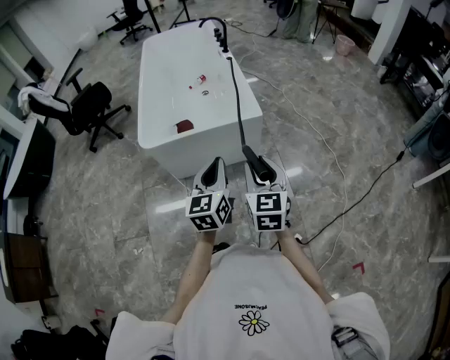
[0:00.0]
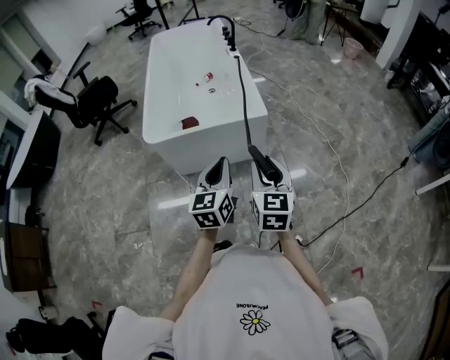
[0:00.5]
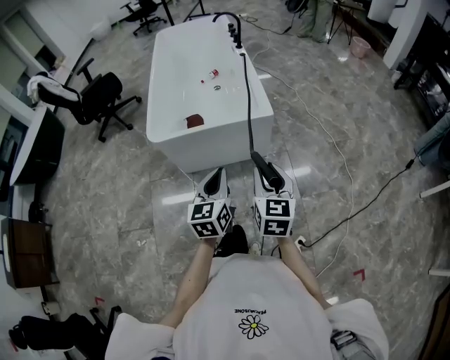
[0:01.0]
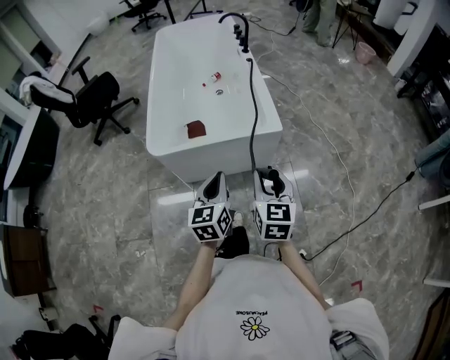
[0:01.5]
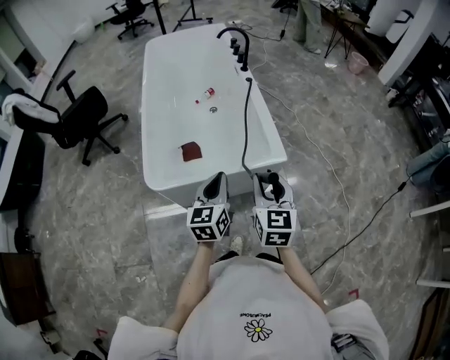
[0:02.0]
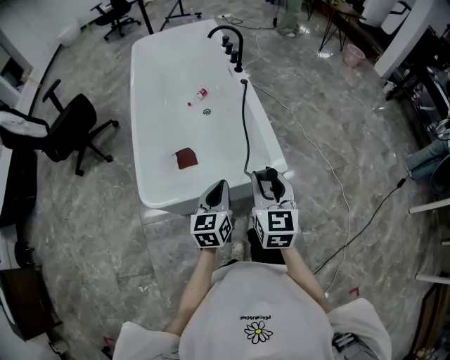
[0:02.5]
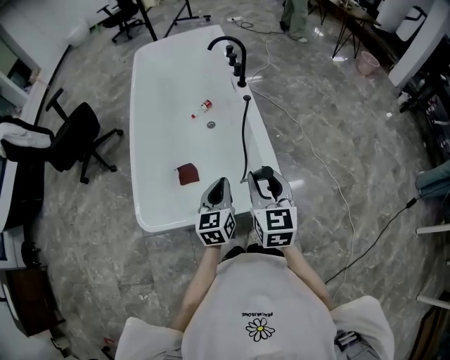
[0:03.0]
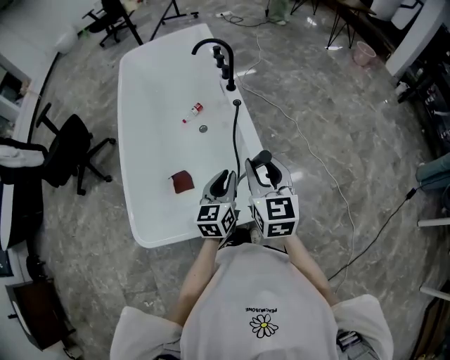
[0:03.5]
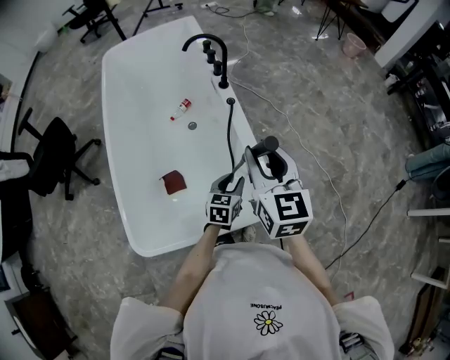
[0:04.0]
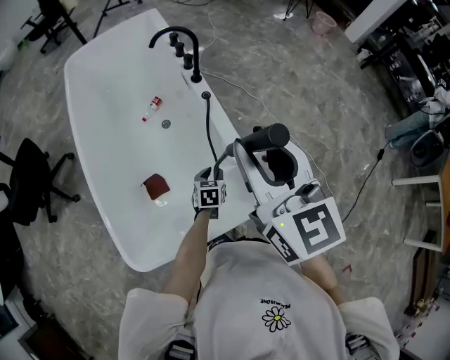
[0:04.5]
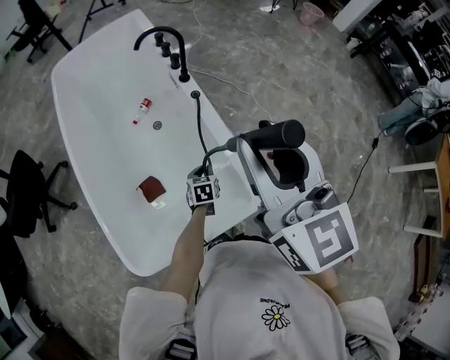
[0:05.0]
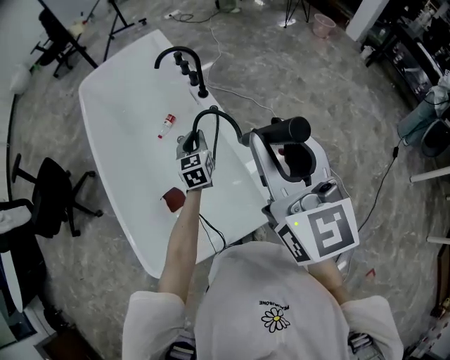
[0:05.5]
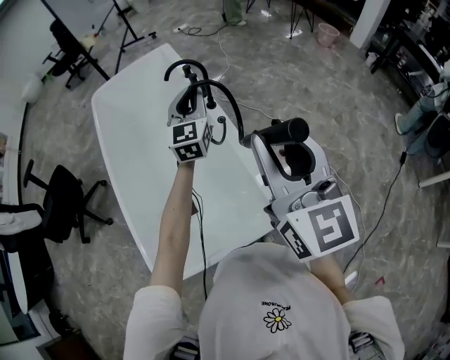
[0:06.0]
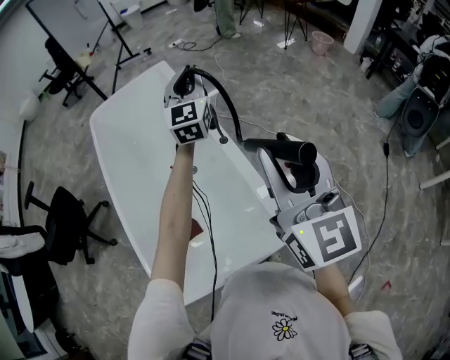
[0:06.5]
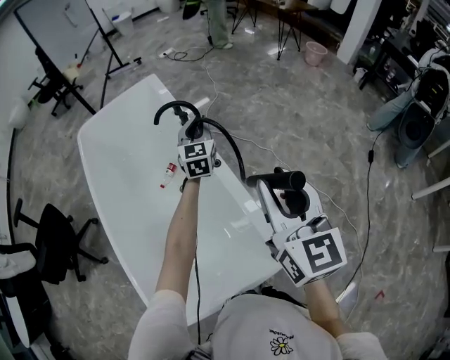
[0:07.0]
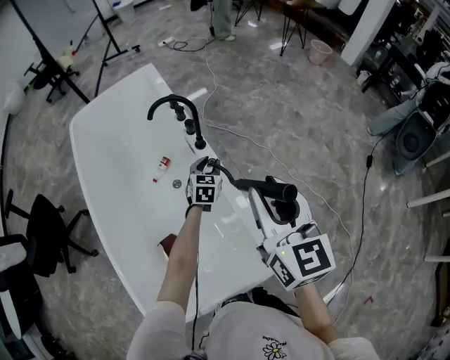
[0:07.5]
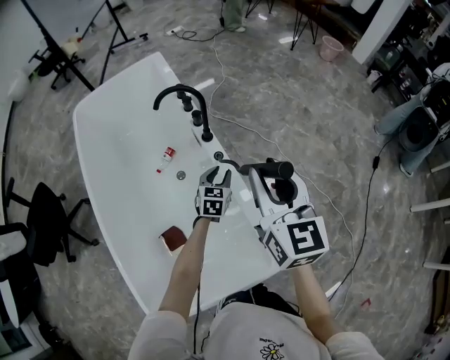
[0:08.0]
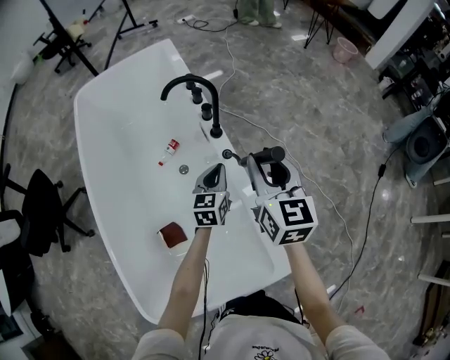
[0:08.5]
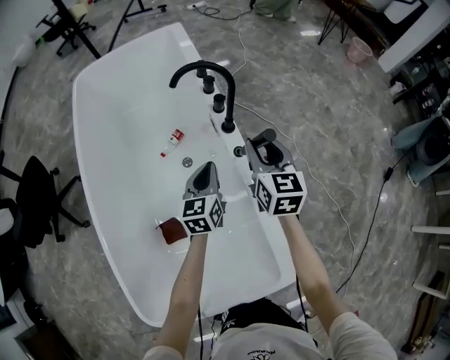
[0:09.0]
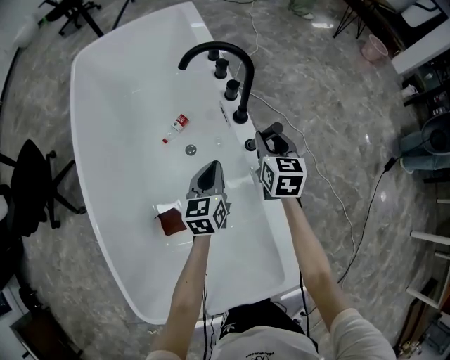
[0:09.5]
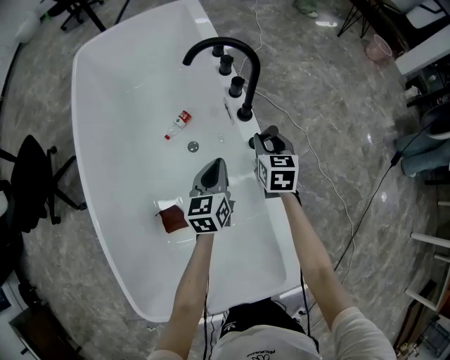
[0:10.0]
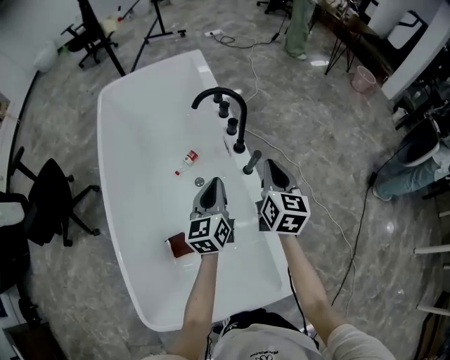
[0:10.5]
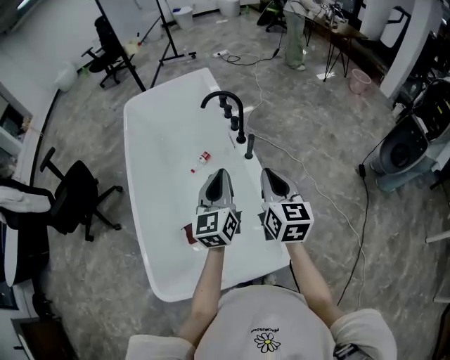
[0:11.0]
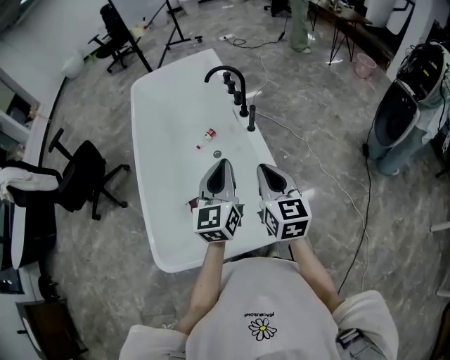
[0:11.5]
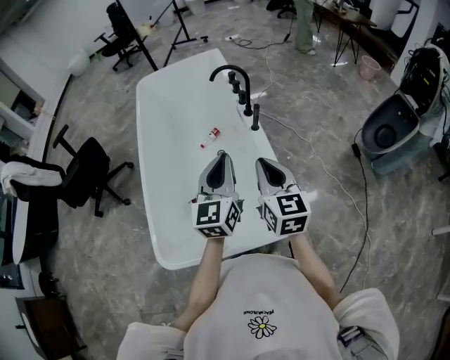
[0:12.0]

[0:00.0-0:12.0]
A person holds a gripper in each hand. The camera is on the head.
0:00.0 to 0:02.0: Both grippers move forward and to the left, some 30 cm.
0:02.0 to 0:04.0: The left gripper travels forward and downward by about 40 cm, changes its angle by some 30 degrees, and opens up. Meanwhile the right gripper is displaced forward by about 40 cm.
0:04.0 to 0:06.0: The left gripper heads upward and forward, covering approximately 40 cm, and points its fingers about 30 degrees further upward; the right gripper goes roughly 15 cm upward.
0:06.0 to 0:08.0: The right gripper shifts approximately 25 cm forward and downward. The left gripper heads downward, covering some 30 cm, and points its fingers roughly 30 degrees further downward.
0:08.0 to 0:10.0: The left gripper travels to the left by about 15 cm, rotates some 30 degrees, and closes its fingers. Meanwhile the right gripper moves downward and forward, about 40 cm, and swivels roughly 30 degrees.
0:10.0 to 0:12.0: The left gripper shifts about 50 cm upward and backward, and turns by some 30 degrees. Meanwhile the right gripper heads backward and upward, covering approximately 50 cm, rotates roughly 30 degrees, and closes up.

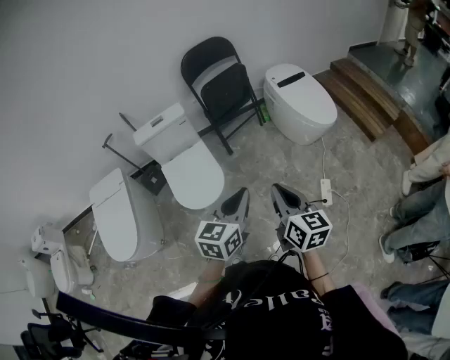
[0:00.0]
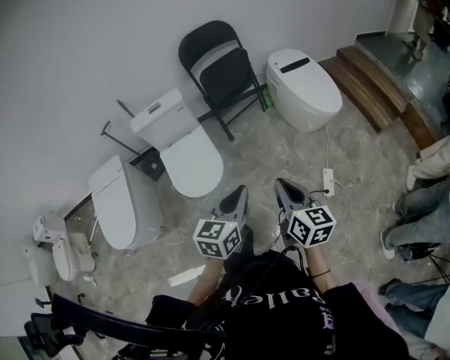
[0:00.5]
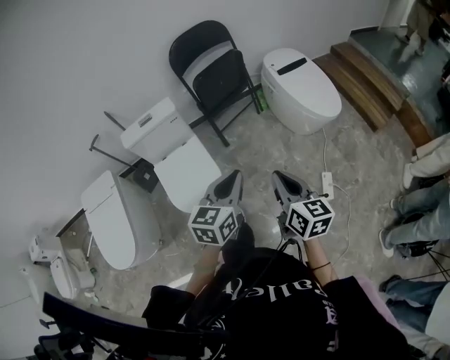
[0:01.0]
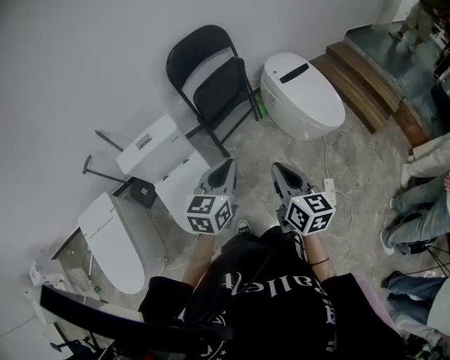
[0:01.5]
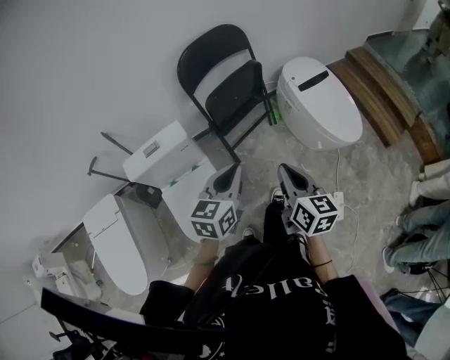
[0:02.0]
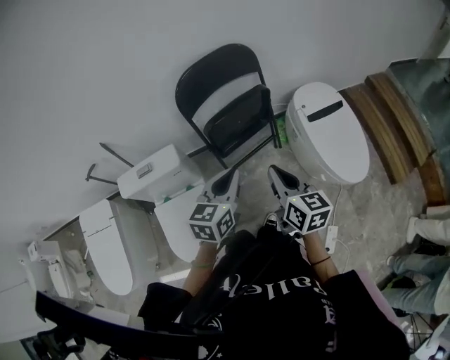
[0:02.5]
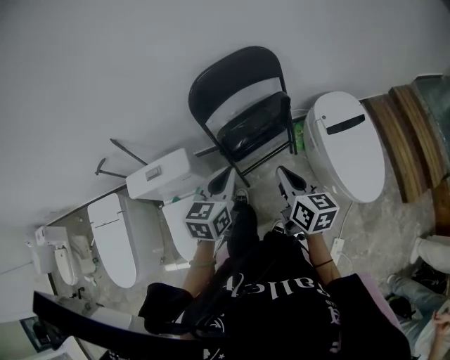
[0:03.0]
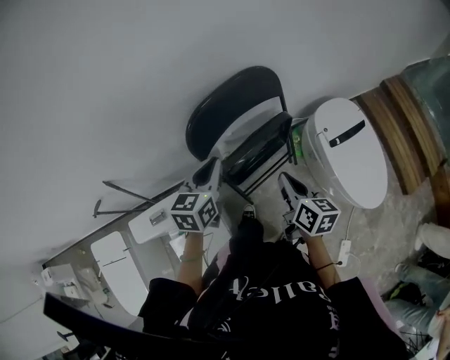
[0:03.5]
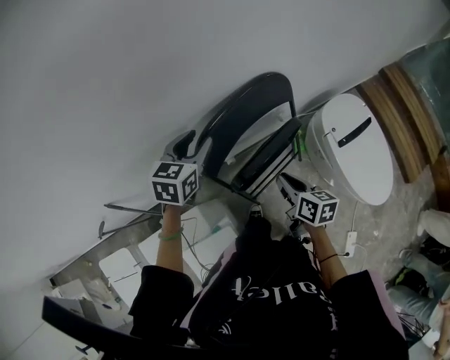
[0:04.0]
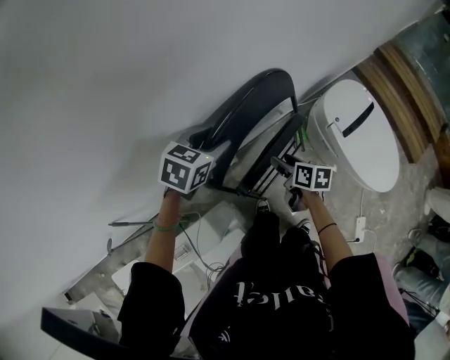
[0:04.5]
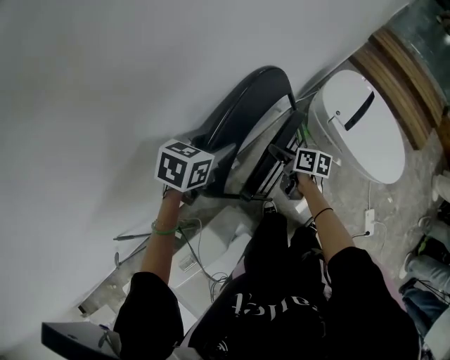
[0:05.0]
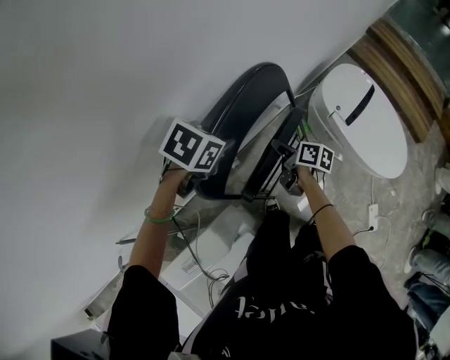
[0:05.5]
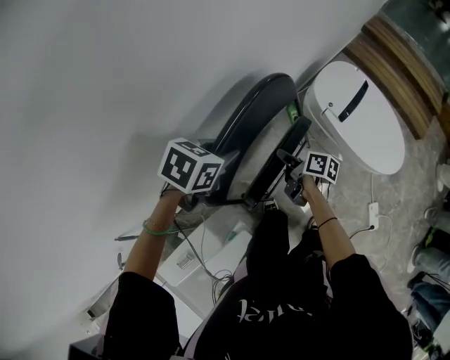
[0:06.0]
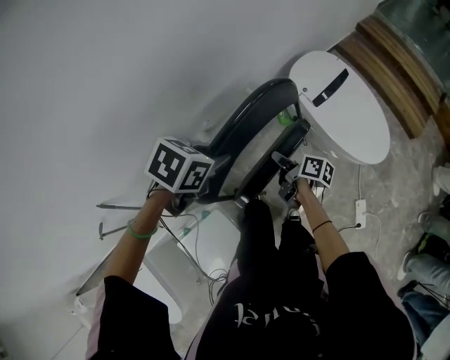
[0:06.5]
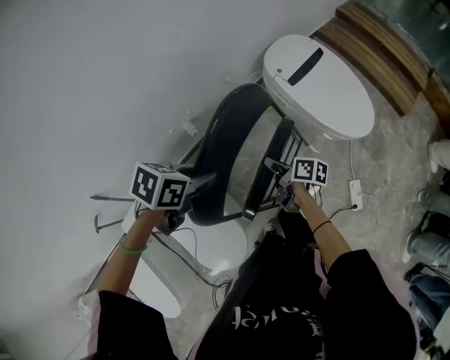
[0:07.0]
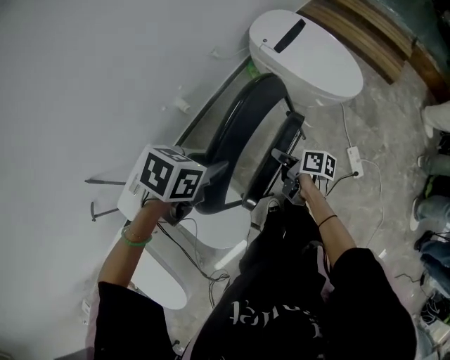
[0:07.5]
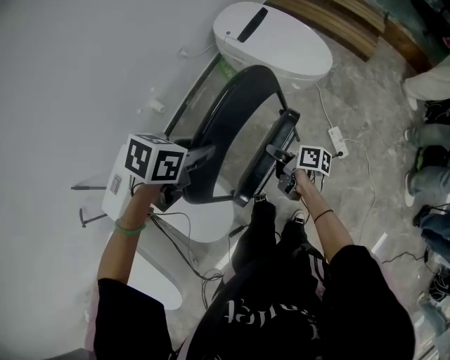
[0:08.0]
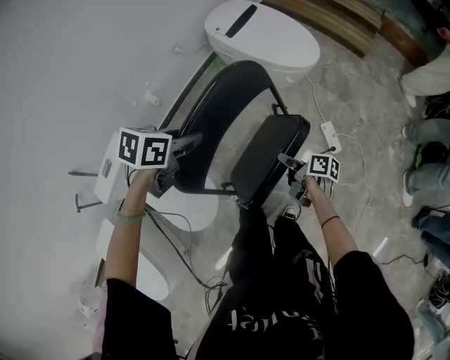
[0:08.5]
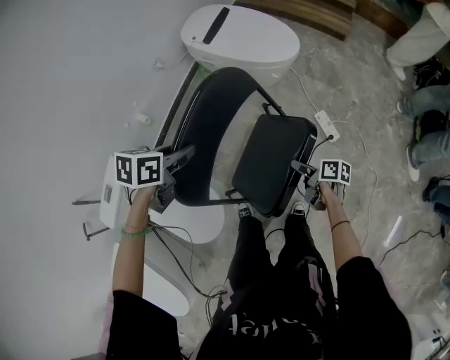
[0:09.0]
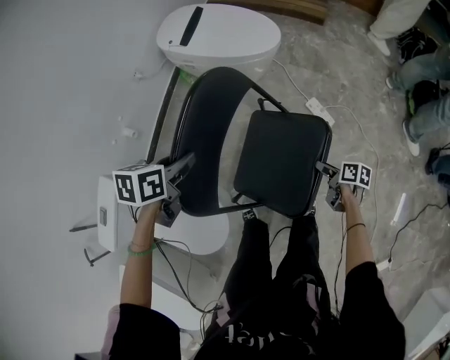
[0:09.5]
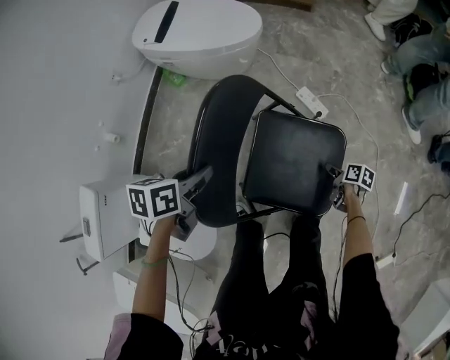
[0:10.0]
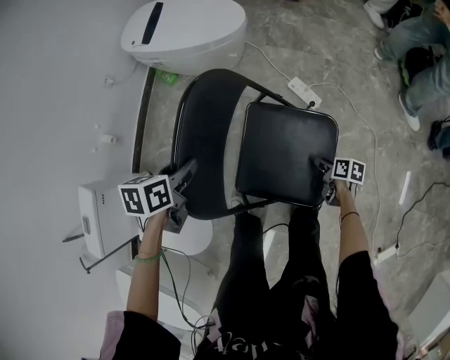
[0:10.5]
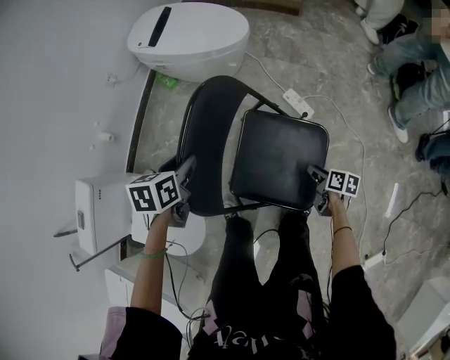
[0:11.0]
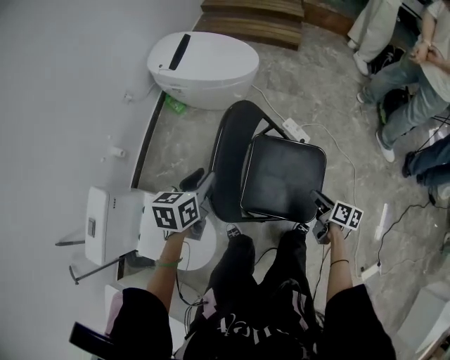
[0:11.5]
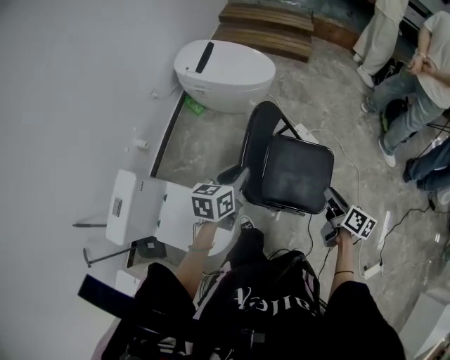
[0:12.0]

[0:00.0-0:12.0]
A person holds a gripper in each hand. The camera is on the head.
0:00.0 to 0:02.0: The two grippers travel together, forward, approximately 40 cm.
0:02.0 to 0:04.0: The pair of grippers is taken forward, roughly 50 cm. The left gripper opens its fingers. Meanwhile the right gripper swivels about 30 degrees.
0:04.0 to 0:06.0: The right gripper goes about 15 cm downward, swivels about 40 degrees, and opens, then closes once more. The left gripper moves some 15 cm, turns by approximately 40 degrees, and closes up.
0:06.0 to 0:08.0: Both grippers are carried backward and to the right, some 50 cm.
0:08.0 to 0:10.0: The right gripper travels to the right, downward and backward by approximately 50 cm, and changes its angle by approximately 40 degrees, while the left gripper shifts some 25 cm downward and to the right.
0:10.0 to 0:12.0: The left gripper travels upward and backward by about 20 cm, and rotates about 20 degrees; the right gripper moves upward, about 40 cm, and rotates roughly 30 degrees.

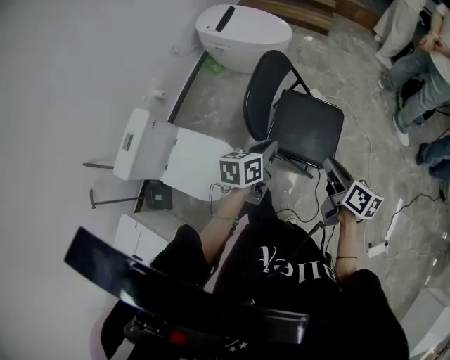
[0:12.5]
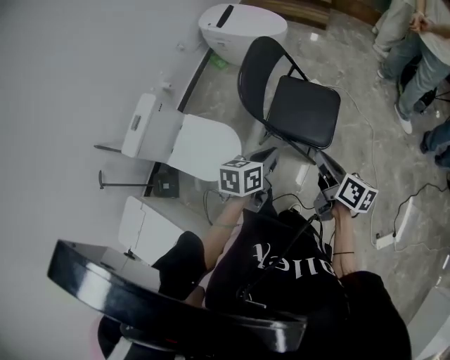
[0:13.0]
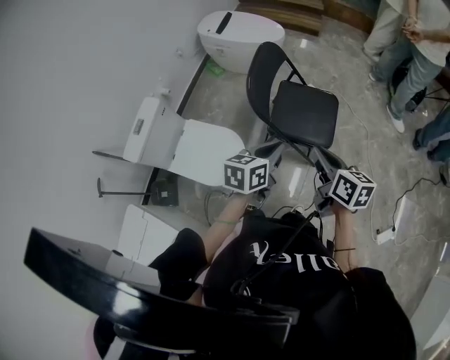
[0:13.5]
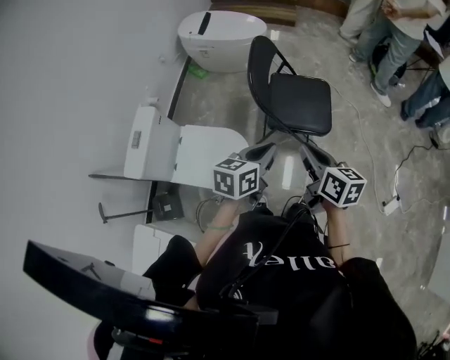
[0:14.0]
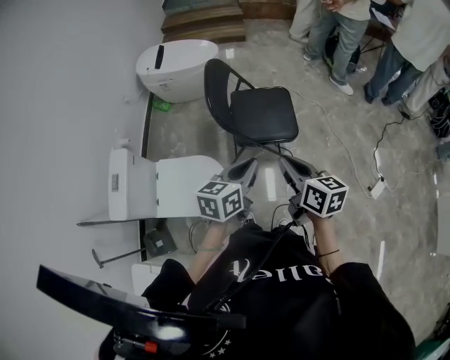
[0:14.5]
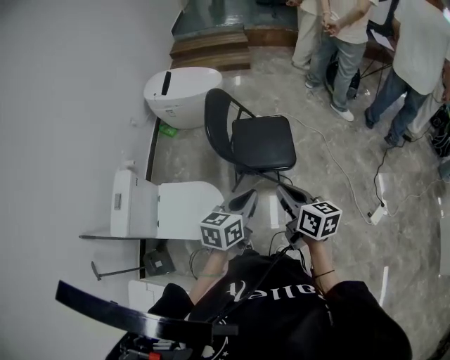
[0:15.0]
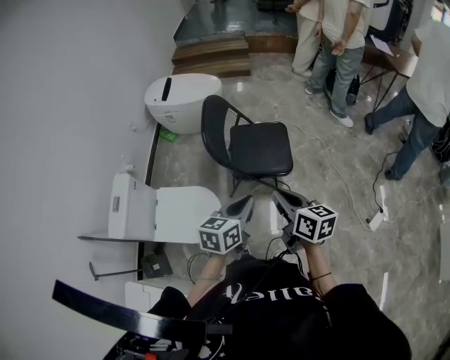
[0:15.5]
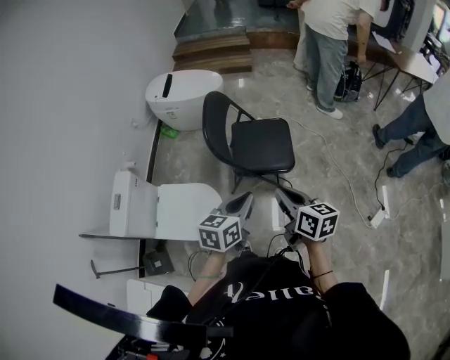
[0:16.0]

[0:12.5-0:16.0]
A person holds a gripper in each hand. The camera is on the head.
0:12.5 to 0:14.5: The right gripper is displaced backward and to the left by roughly 25 cm, and swivels about 20 degrees. Meanwhile the left gripper goes about 20 cm backward, and swivels approximately 30 degrees.
0:14.5 to 0:16.0: The right gripper goes about 5 cm to the right. The left gripper changes place by some 5 cm.
